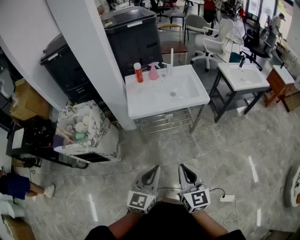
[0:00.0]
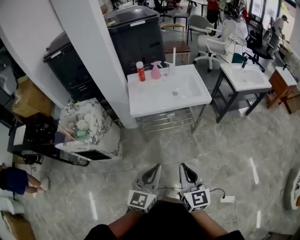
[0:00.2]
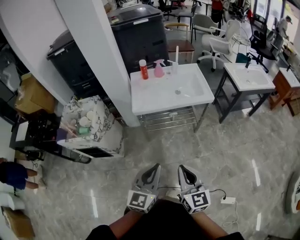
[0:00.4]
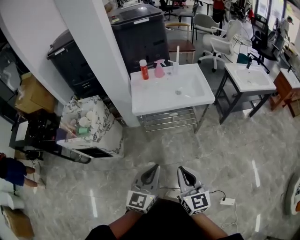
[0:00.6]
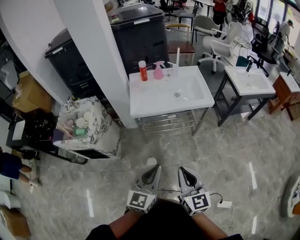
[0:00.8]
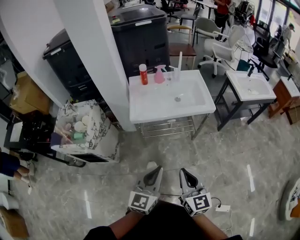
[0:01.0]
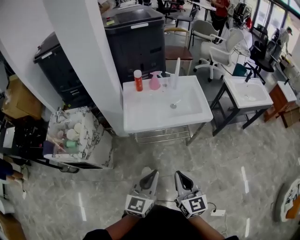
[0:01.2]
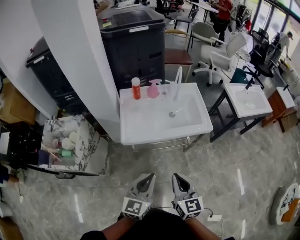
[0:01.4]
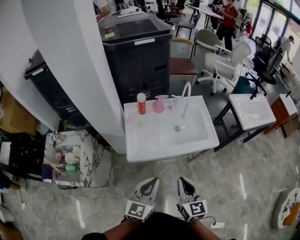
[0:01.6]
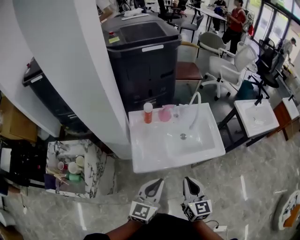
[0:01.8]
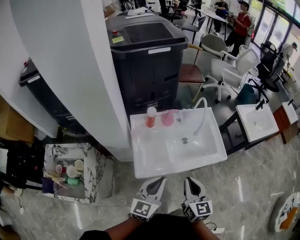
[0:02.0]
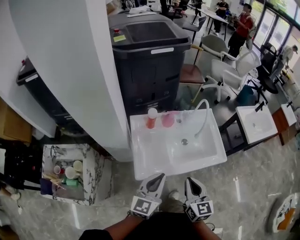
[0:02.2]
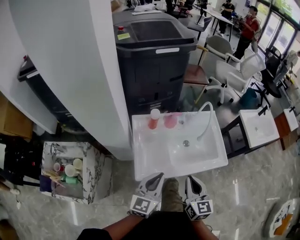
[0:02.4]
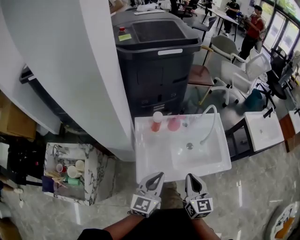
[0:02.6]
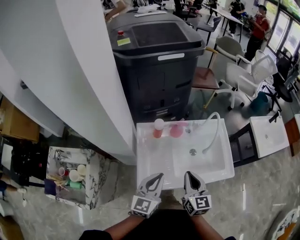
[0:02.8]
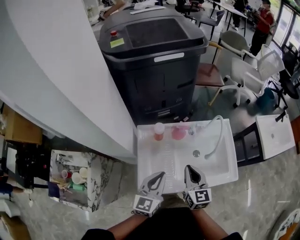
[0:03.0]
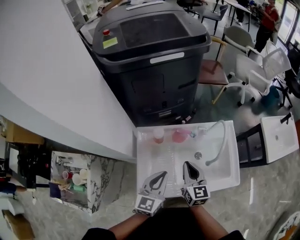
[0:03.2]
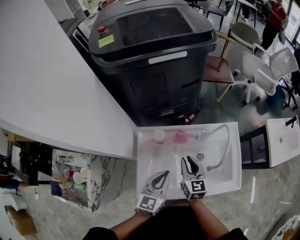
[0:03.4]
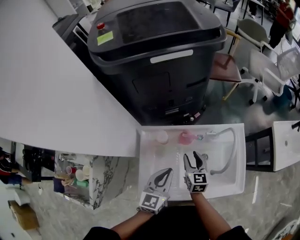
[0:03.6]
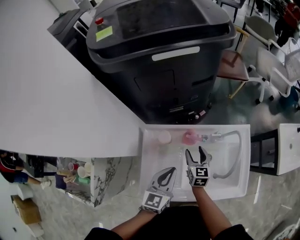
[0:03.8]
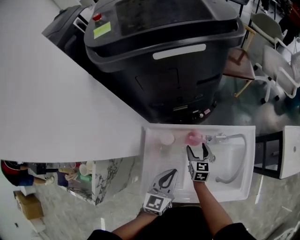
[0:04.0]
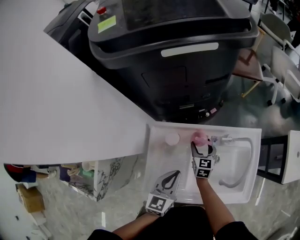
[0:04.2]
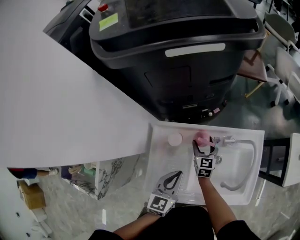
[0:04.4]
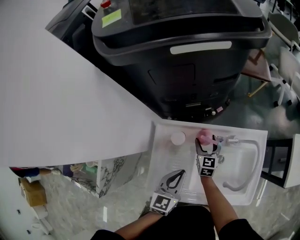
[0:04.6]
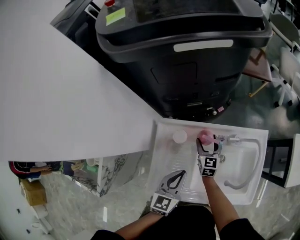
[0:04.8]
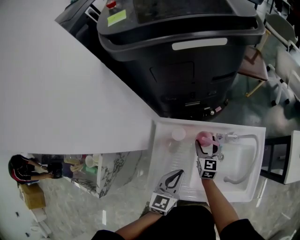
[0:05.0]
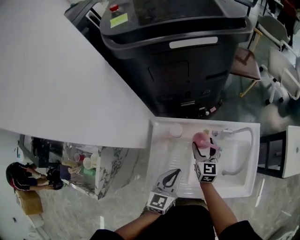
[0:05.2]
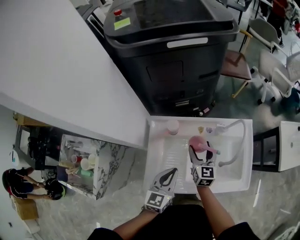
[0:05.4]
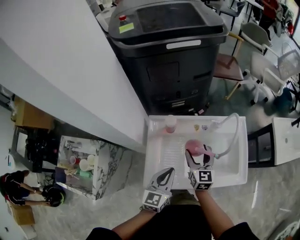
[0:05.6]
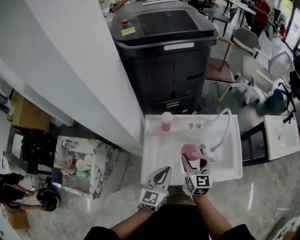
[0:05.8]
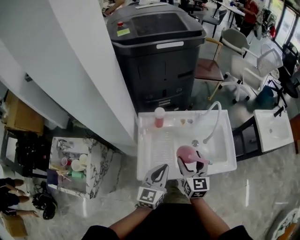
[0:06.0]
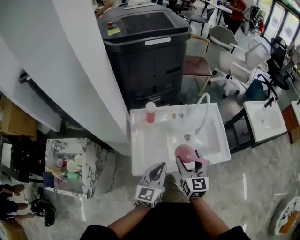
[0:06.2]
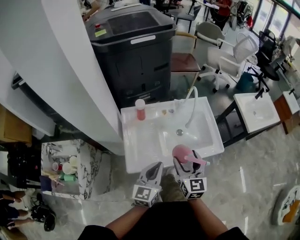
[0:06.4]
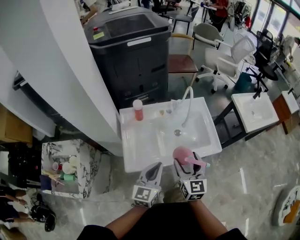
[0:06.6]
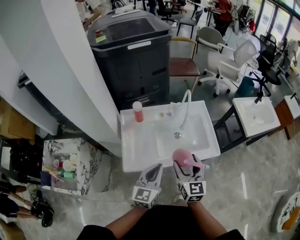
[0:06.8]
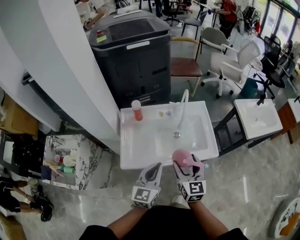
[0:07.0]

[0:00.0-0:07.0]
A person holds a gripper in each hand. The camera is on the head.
0.0 to 1.4 s: The grippers both shift forward by some 25 cm.
1.4 to 2.8 s: The right gripper goes approximately 35 cm forward; the left gripper shifts about 35 cm forward and to the left.
2.8 to 4.2 s: The left gripper moves forward and downward, roughly 20 cm, while the right gripper shifts approximately 40 cm forward and downward, and opens its fingers.
4.2 to 5.6 s: The left gripper shifts approximately 10 cm backward. The right gripper heads upward and backward, covering roughly 20 cm.
5.6 to 7.0 s: The grippers both shift backward, to the right and upward by about 25 cm.

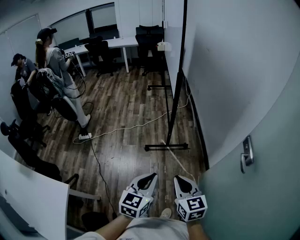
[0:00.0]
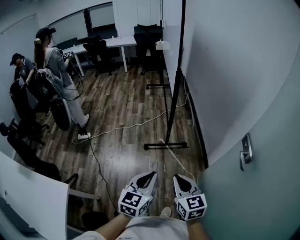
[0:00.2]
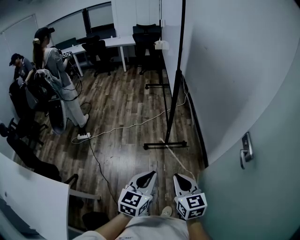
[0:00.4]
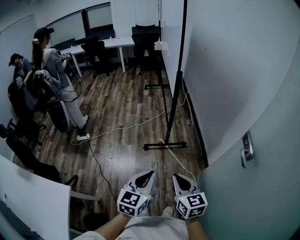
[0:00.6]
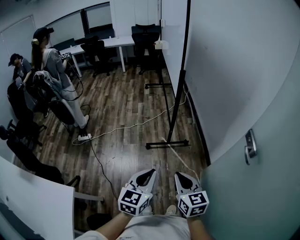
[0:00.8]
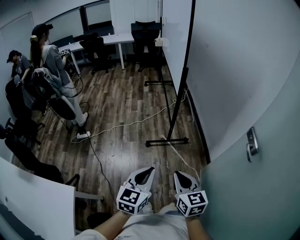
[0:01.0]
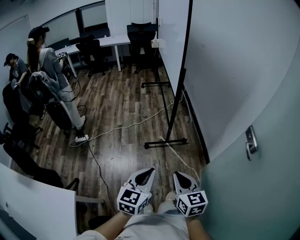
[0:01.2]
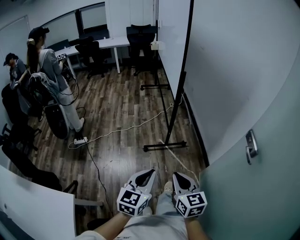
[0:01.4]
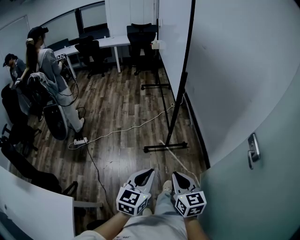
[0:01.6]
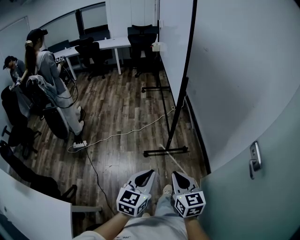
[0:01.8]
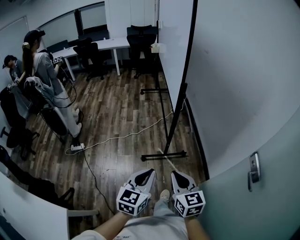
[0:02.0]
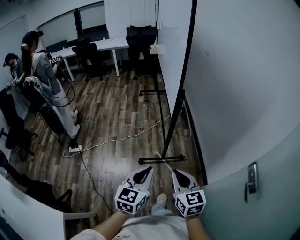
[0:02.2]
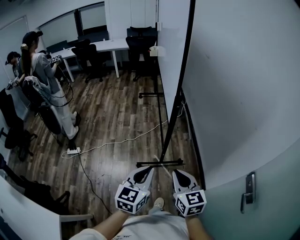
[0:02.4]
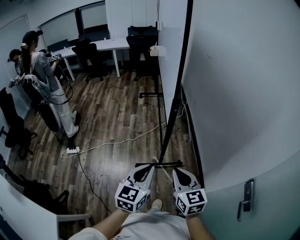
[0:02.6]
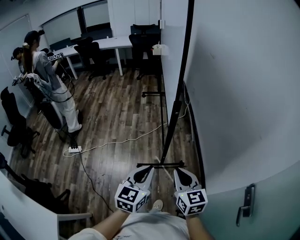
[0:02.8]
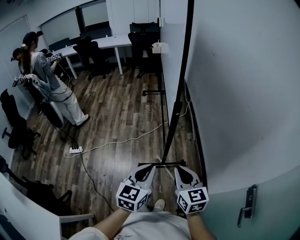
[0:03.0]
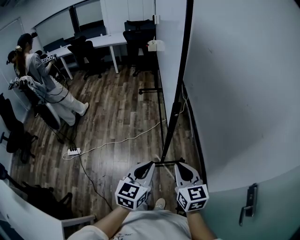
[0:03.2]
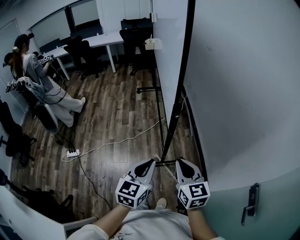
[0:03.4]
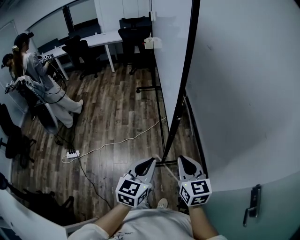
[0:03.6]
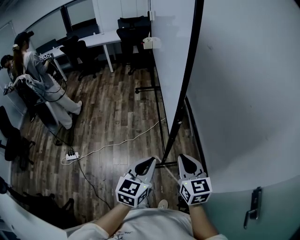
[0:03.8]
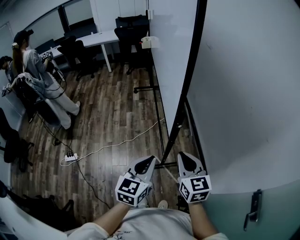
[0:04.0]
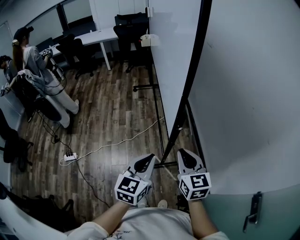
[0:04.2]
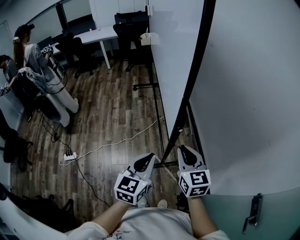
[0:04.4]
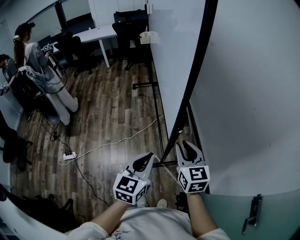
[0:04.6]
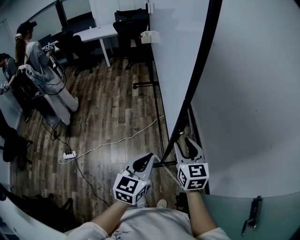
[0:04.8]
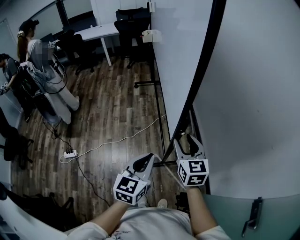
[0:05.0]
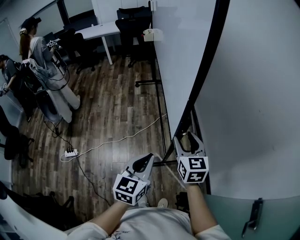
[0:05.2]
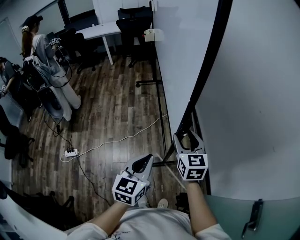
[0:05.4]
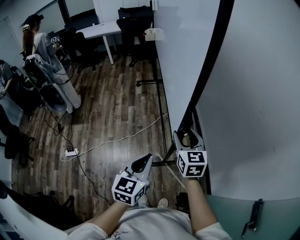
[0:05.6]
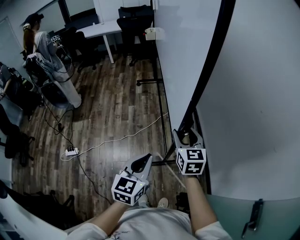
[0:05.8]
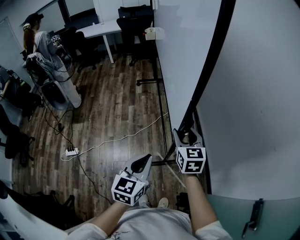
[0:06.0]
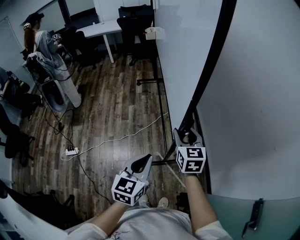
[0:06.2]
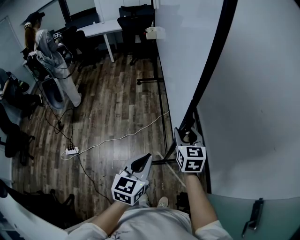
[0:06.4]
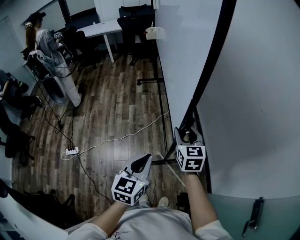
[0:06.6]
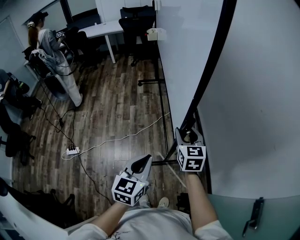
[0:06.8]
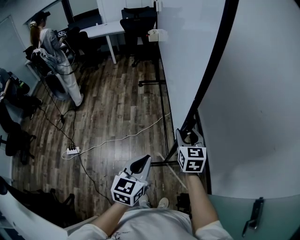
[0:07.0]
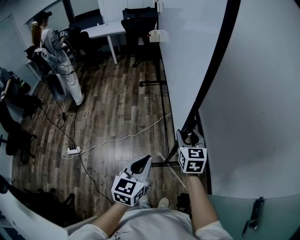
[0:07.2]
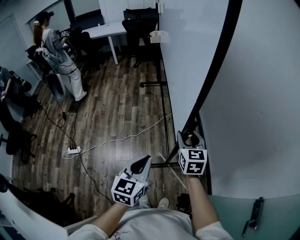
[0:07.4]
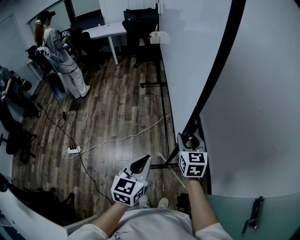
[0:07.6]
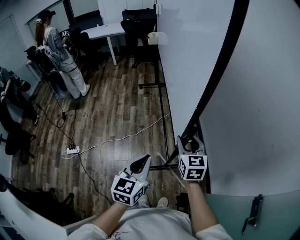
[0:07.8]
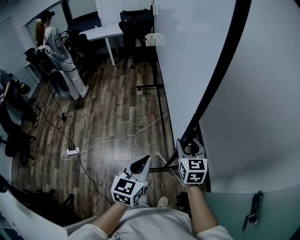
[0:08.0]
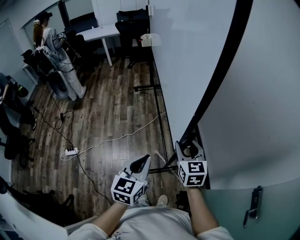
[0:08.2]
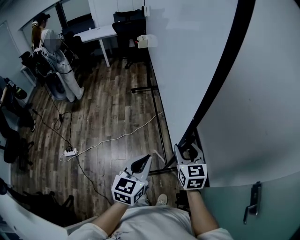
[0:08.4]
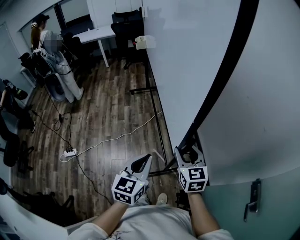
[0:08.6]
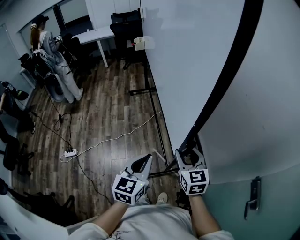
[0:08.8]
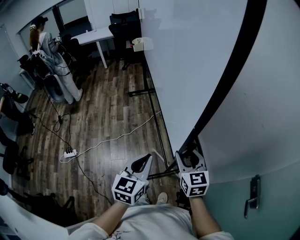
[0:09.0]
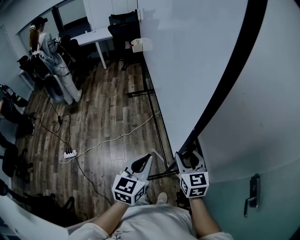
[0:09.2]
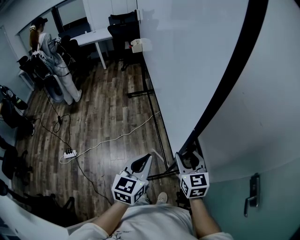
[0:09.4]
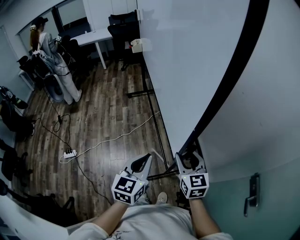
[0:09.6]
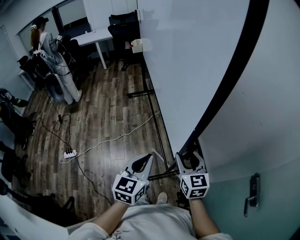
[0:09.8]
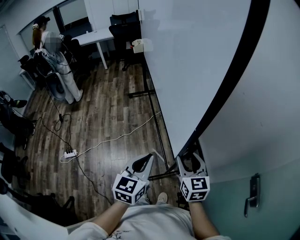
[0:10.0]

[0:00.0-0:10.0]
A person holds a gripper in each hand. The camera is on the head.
0.0 to 1.4 s: Both grippers travel together to the left, about 10 cm.
1.4 to 2.8 s: Both grippers travel together forward, roughly 30 cm.
2.8 to 4.2 s: Both grippers travel together forward, some 20 cm.
4.2 to 5.8 s: The right gripper heads forward, covering approximately 10 cm, and opens up.
5.8 to 7.2 s: The grippers make only small movements.
7.2 to 8.6 s: The left gripper is displaced to the right and backward by approximately 5 cm. Meanwhile the right gripper is displaced backward and to the right by some 15 cm.
8.6 to 10.0 s: The right gripper is displaced backward by approximately 5 cm.

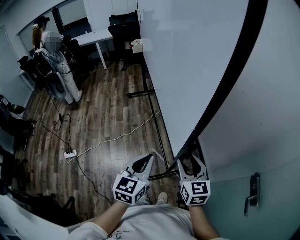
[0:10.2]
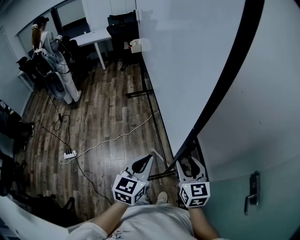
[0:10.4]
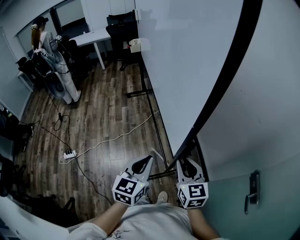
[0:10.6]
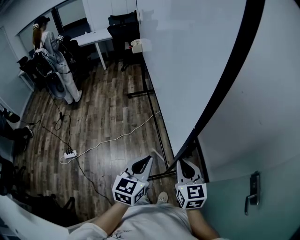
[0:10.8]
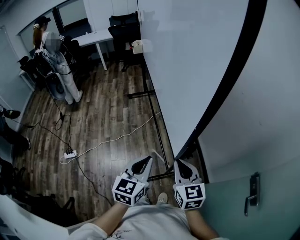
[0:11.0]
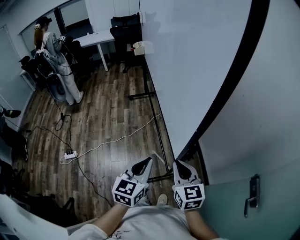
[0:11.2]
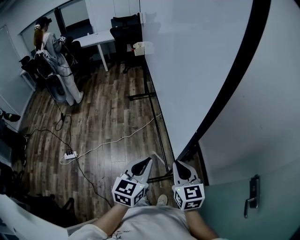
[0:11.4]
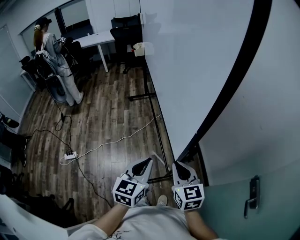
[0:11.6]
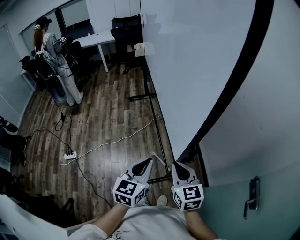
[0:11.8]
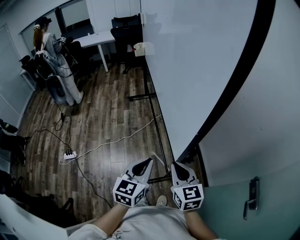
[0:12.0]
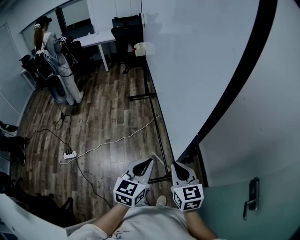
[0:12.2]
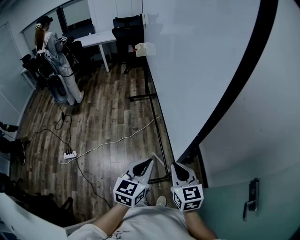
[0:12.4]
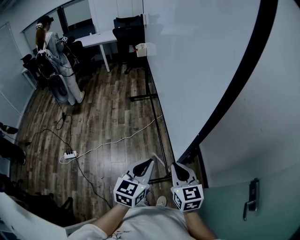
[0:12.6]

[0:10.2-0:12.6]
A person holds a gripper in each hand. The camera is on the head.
10.2 to 11.4 s: The right gripper closes.
11.4 to 12.6 s: Neither gripper changes place.

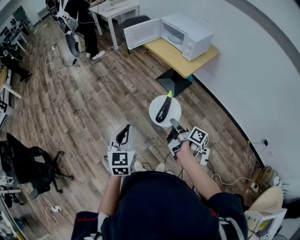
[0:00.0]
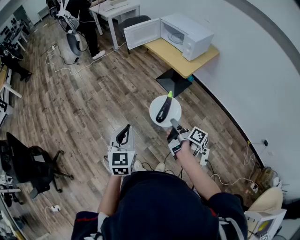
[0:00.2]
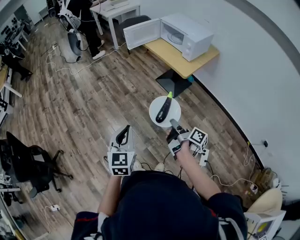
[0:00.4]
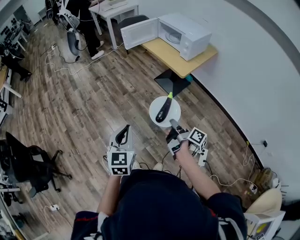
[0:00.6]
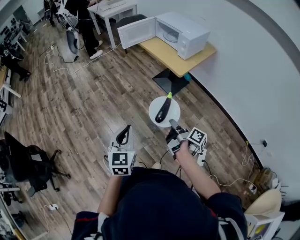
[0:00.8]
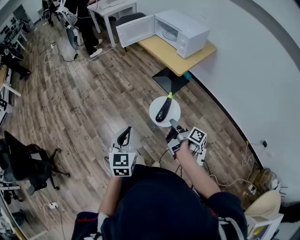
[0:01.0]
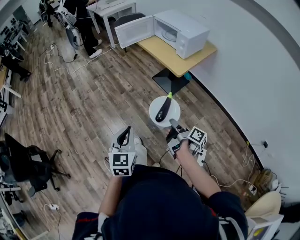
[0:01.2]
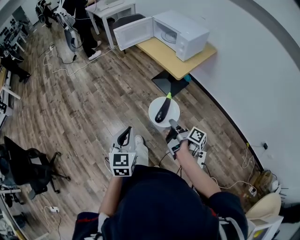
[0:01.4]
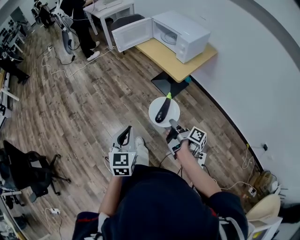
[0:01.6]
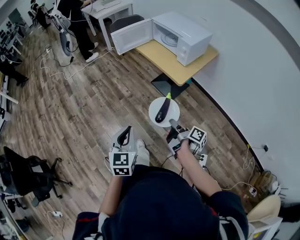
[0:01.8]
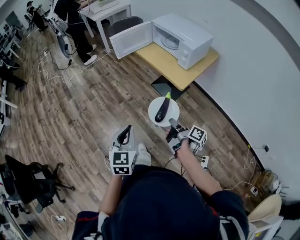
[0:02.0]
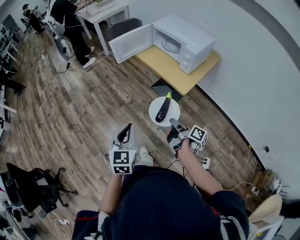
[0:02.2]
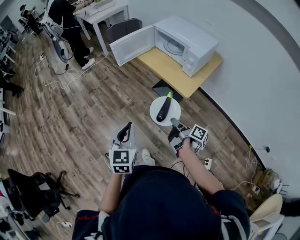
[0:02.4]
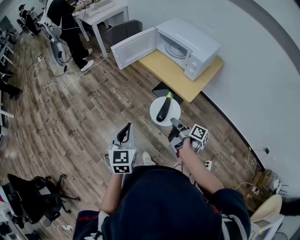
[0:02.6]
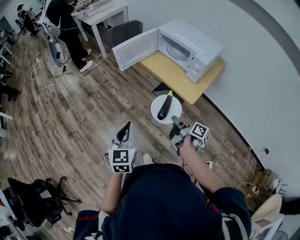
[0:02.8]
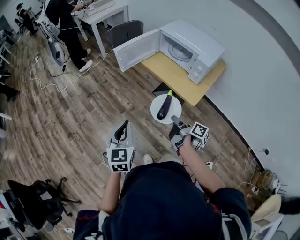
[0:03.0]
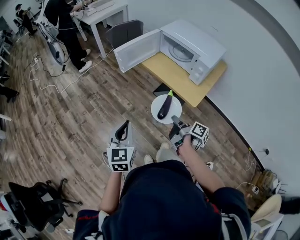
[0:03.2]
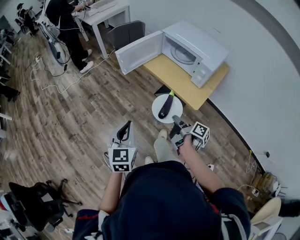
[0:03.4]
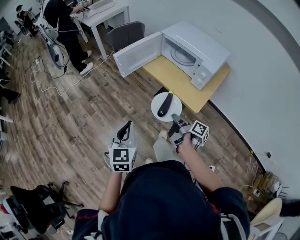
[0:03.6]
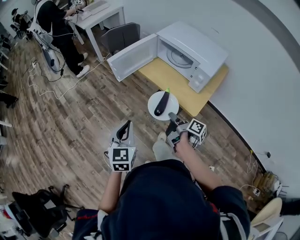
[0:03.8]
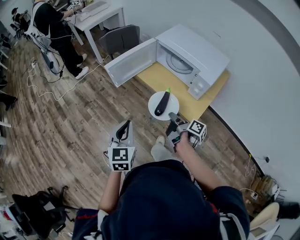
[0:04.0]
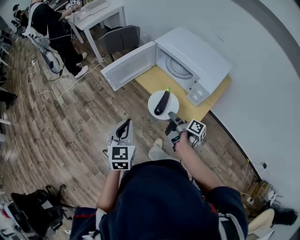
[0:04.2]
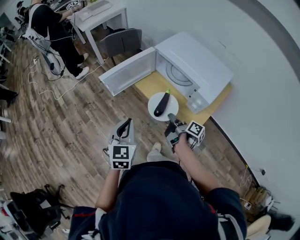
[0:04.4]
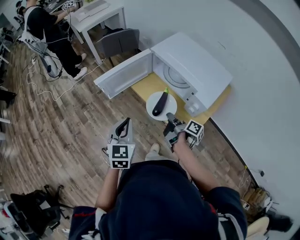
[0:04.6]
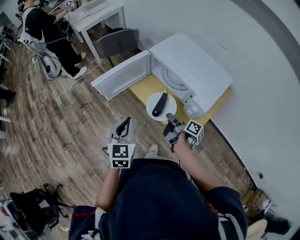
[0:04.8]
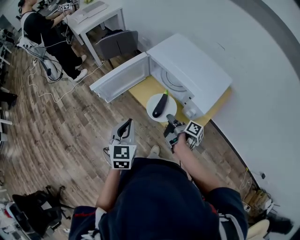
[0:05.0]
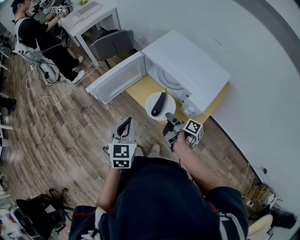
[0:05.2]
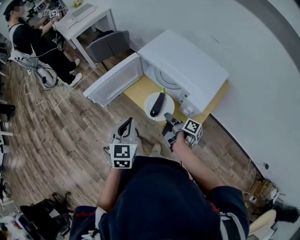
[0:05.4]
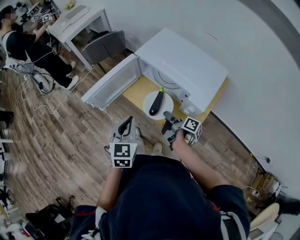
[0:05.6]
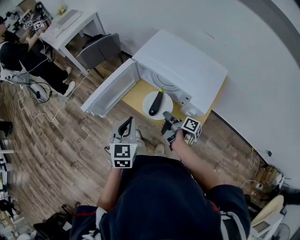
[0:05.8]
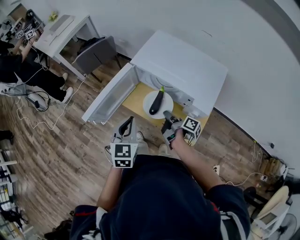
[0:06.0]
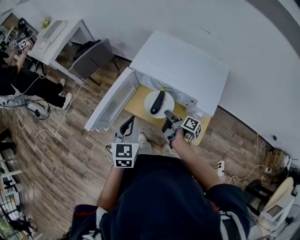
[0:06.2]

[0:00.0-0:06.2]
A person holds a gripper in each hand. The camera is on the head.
0.0 to 1.6 s: The left gripper shifts by roughly 10 cm.
1.6 to 3.2 s: The left gripper moves approximately 35 cm.
3.2 to 4.6 s: The left gripper changes place by some 30 cm.
4.6 to 6.2 s: The left gripper shifts by roughly 20 cm, and rotates about 20 degrees.
